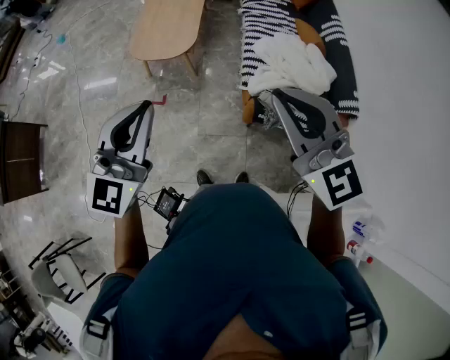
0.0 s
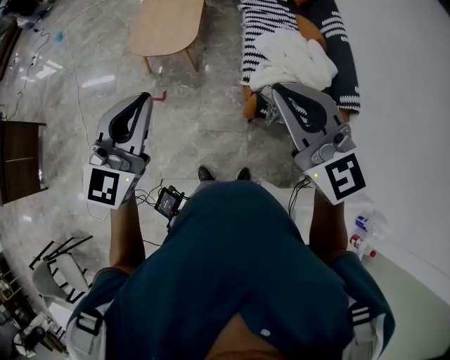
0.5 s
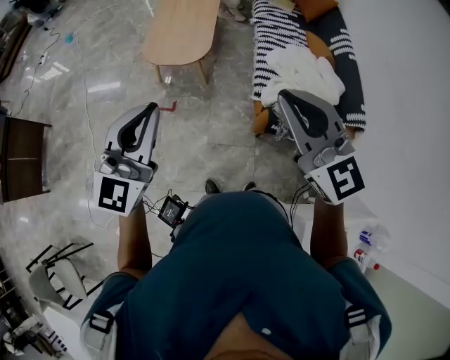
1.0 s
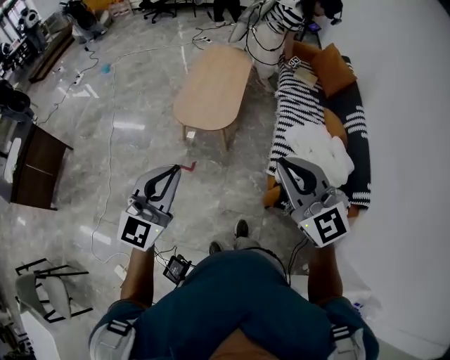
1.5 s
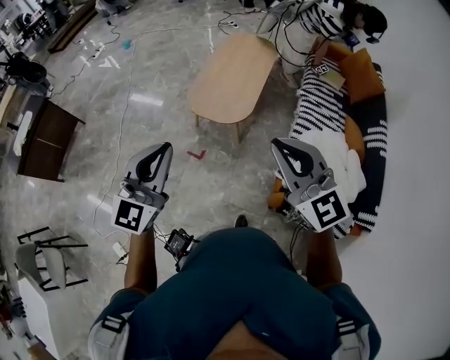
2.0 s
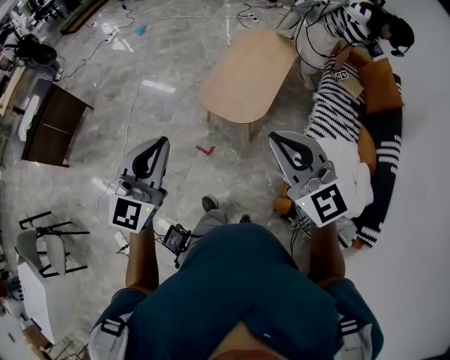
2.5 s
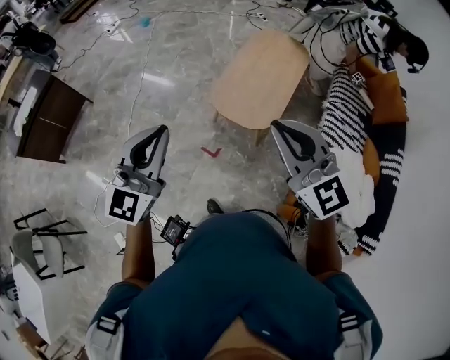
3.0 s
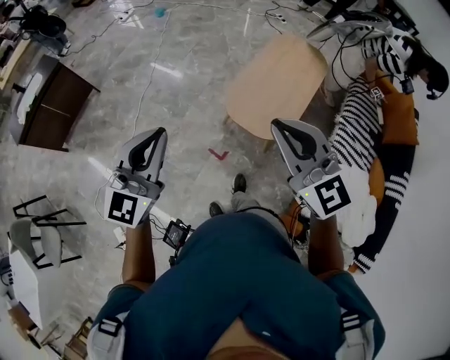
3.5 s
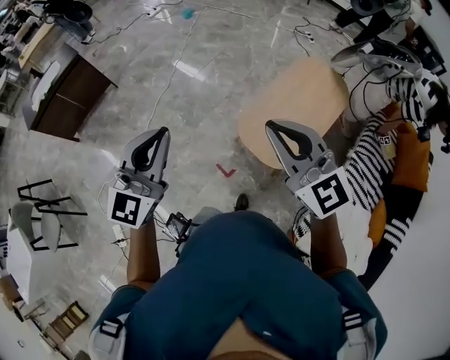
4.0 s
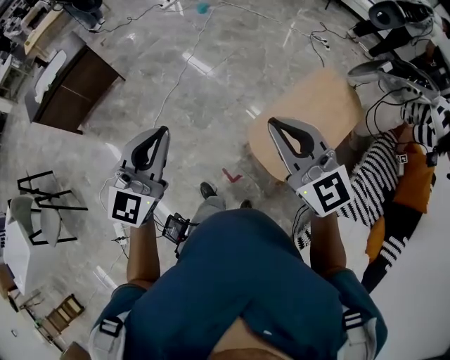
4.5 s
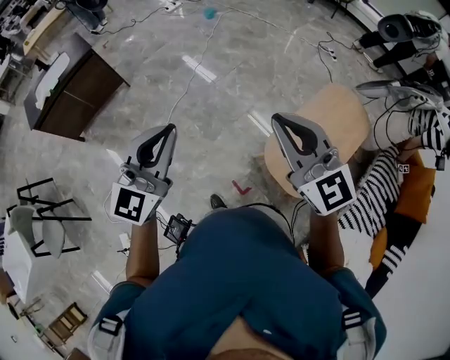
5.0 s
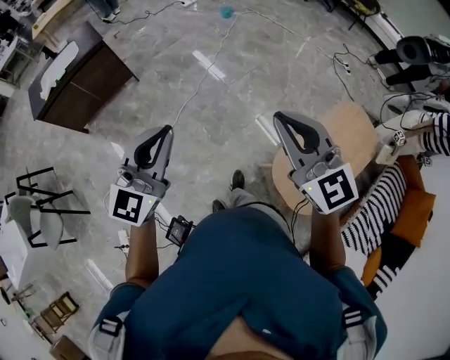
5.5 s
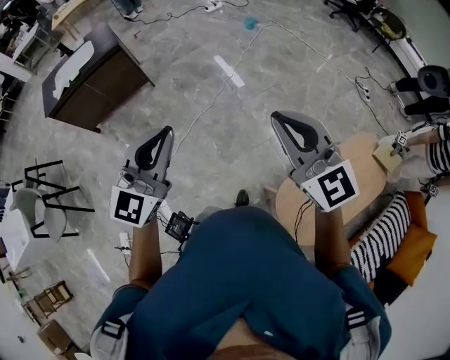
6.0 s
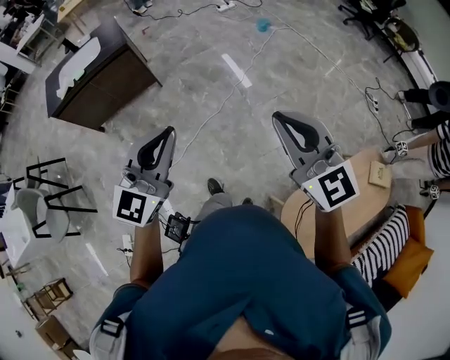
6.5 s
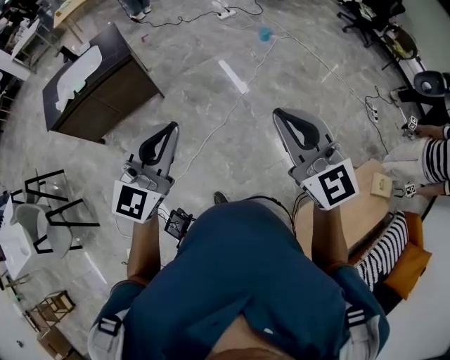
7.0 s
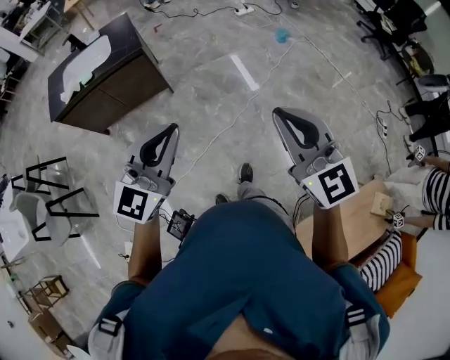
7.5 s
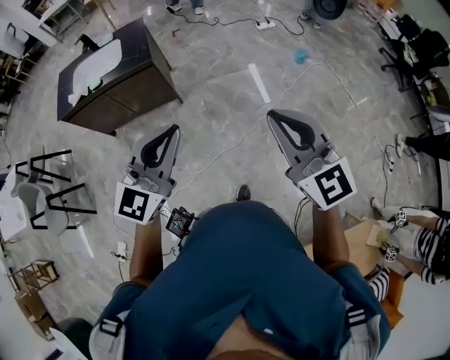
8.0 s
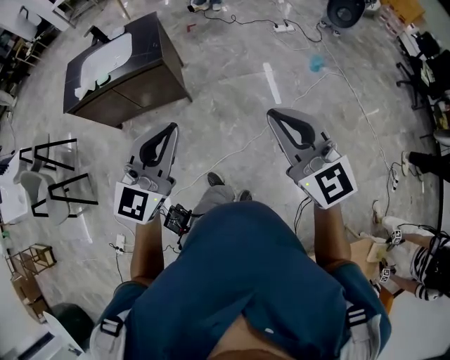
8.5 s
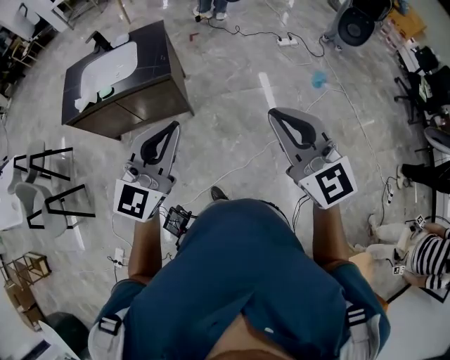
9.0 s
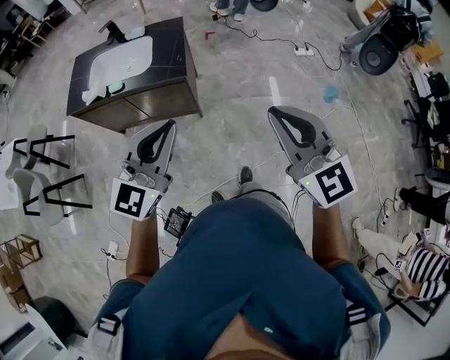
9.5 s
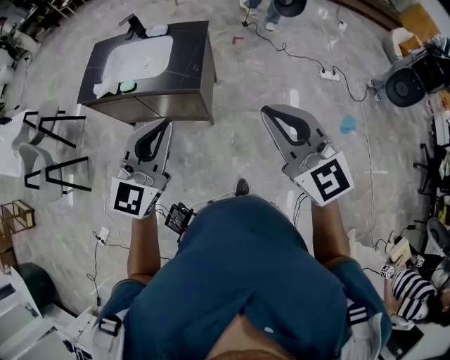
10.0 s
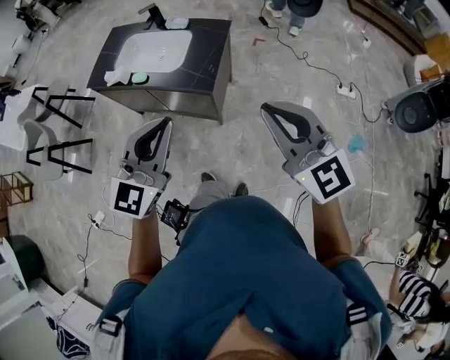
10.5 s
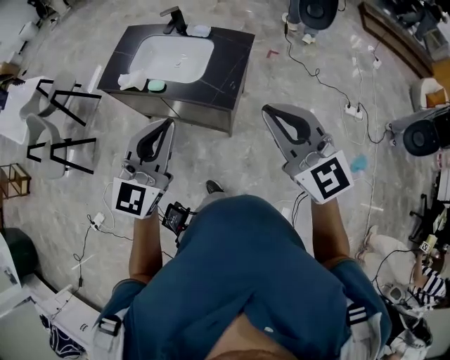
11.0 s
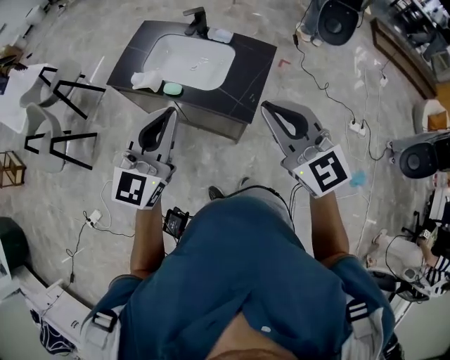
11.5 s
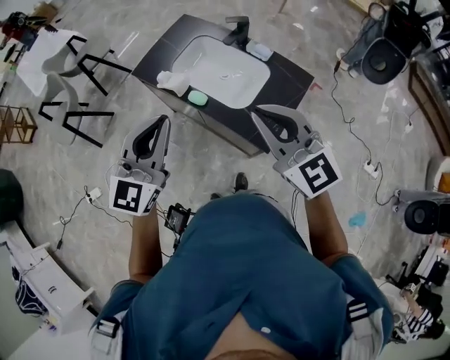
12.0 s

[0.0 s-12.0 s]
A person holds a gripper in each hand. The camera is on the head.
0.0 to 2.0 s: Both grippers travel together forward and to the left, about 20 cm.
2.0 to 4.0 s: The two grippers go approximately 40 cm forward and to the left. The left gripper rotates some 20 degrees. Meanwhile the right gripper rotates roughly 20 degrees.
4.0 to 6.0 s: The two grippers travel together, forward and to the left, some 50 cm.
6.0 to 8.0 s: The pair of grippers is taken forward, about 40 cm.
8.0 to 10.0 s: The two grippers go approximately 40 cm forward. The right gripper rotates roughly 20 degrees; the left gripper rotates roughly 20 degrees.
10.0 to 12.0 s: The left gripper changes place by some 35 cm, and turns by roughly 30 degrees; the right gripper ends up approximately 40 cm from where it was, and turns by roughly 30 degrees.

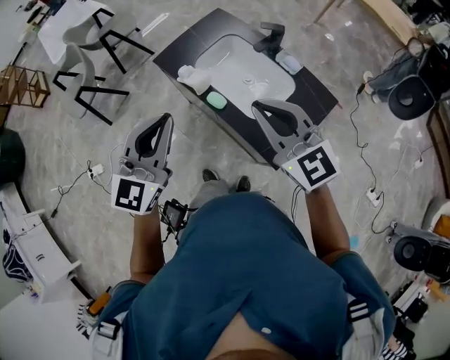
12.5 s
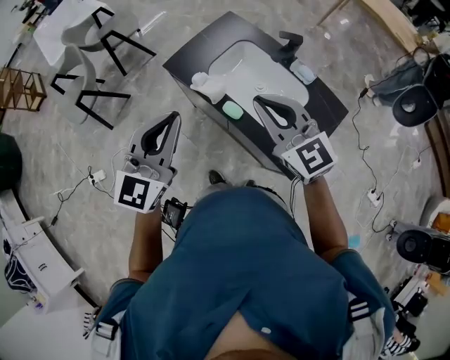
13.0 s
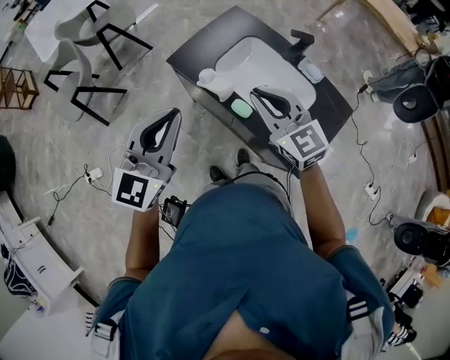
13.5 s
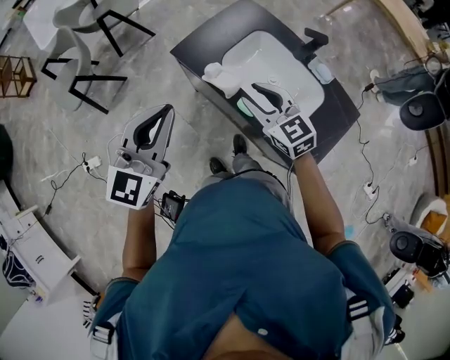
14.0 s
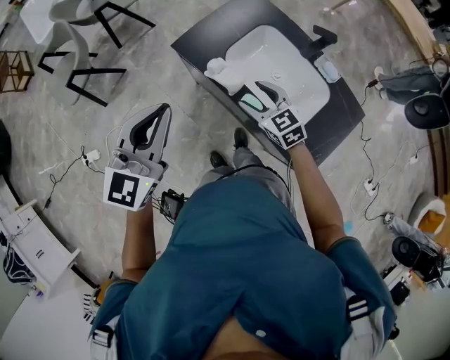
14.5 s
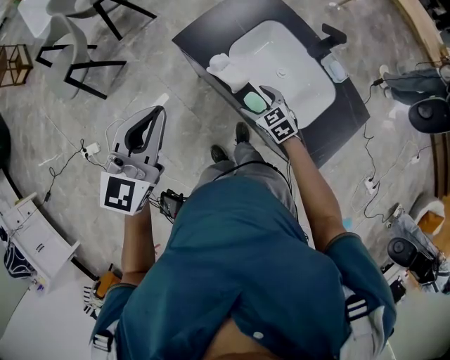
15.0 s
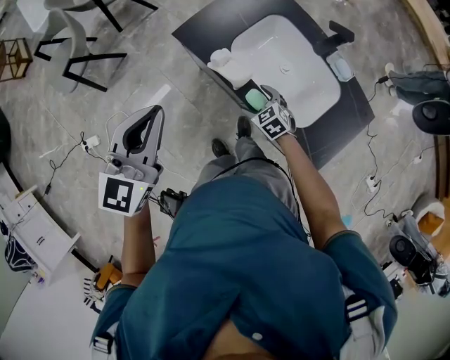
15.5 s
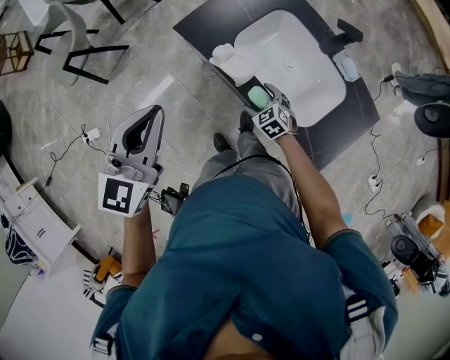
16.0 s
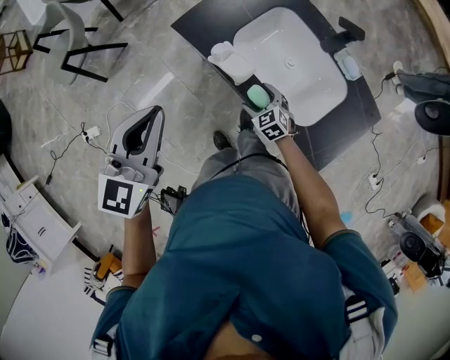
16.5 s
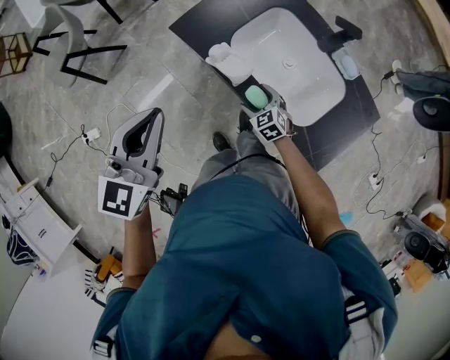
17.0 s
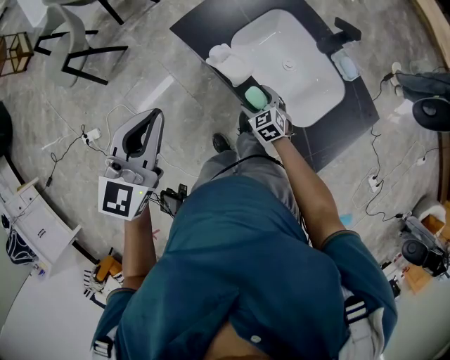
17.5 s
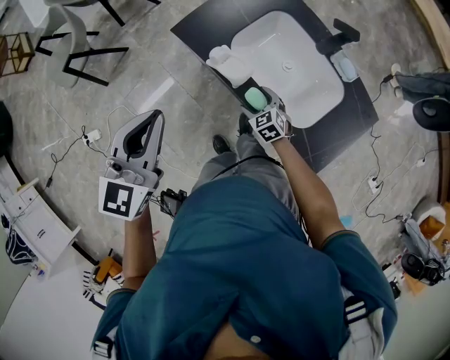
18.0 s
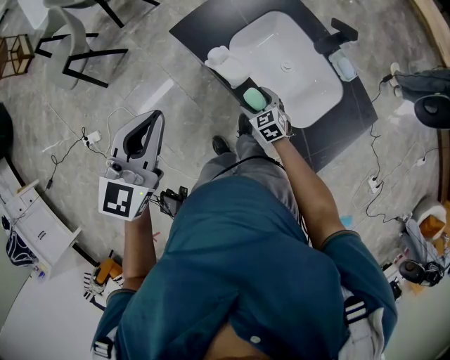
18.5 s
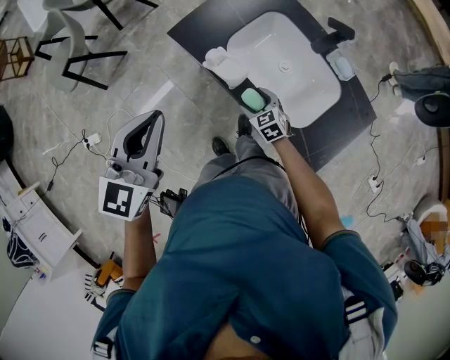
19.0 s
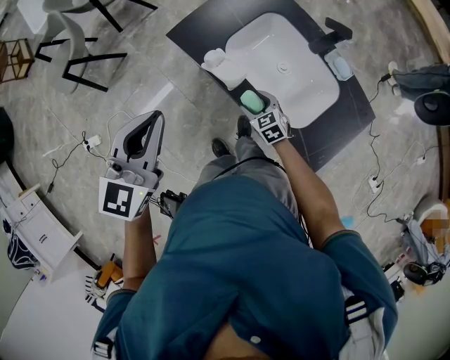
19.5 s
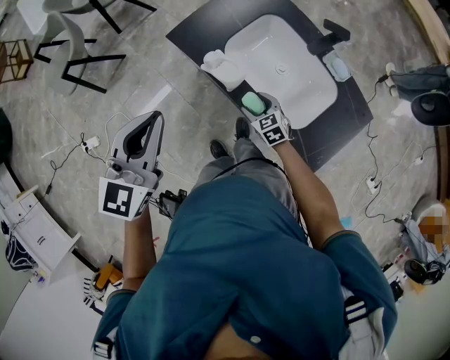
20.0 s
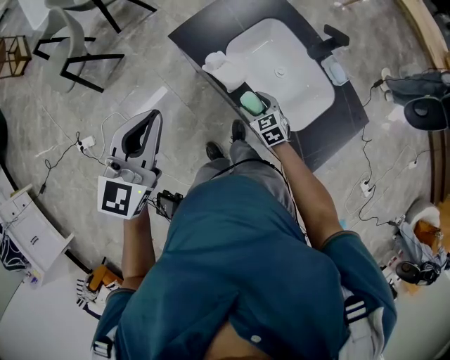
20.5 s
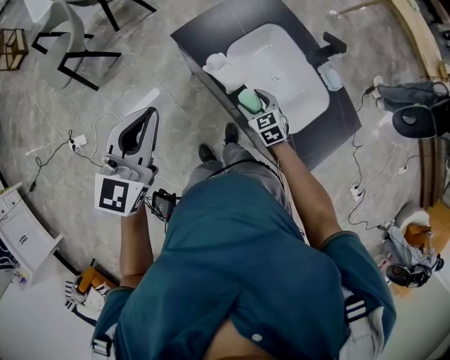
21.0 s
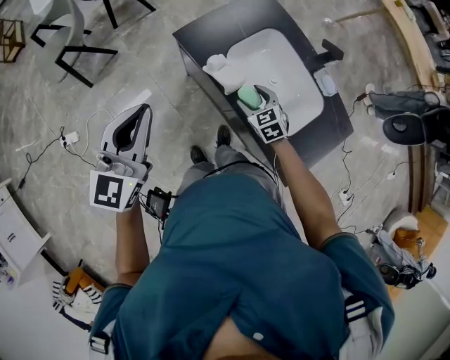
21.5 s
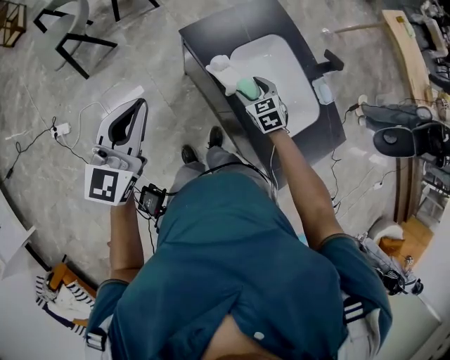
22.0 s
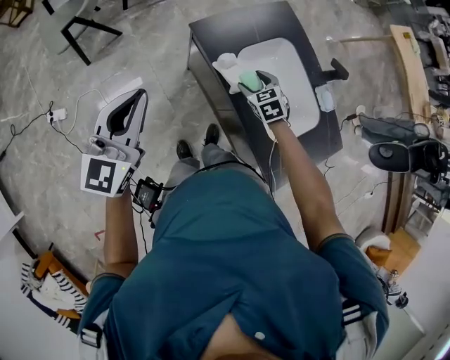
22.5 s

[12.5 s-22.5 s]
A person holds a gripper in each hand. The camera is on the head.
12.5 to 14.5 s: The left gripper heads to the left and forward, covering about 20 cm. Meanwhile the right gripper is displaced downward, forward and to the left by approximately 35 cm, rotates approximately 30 degrees, and opens up.
14.5 to 16.5 s: The right gripper moves downward, approximately 20 cm. The left gripper goes some 5 cm downward.
16.5 to 20.5 s: The grippers move only a little.
20.5 to 22.5 s: The left gripper goes about 10 cm to the left. The right gripper goes approximately 10 cm forward and upward.

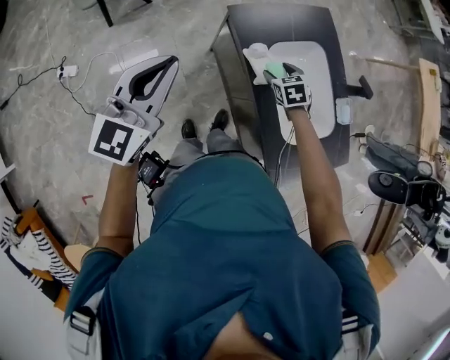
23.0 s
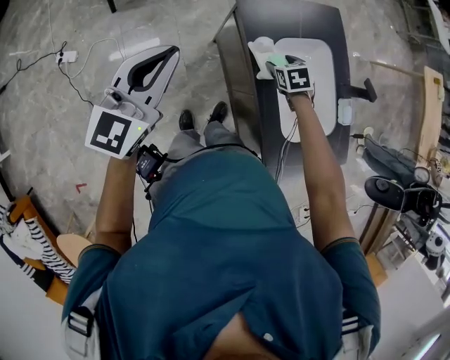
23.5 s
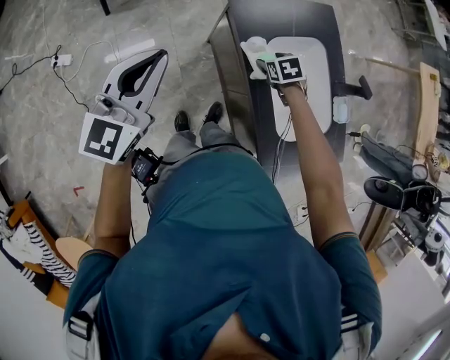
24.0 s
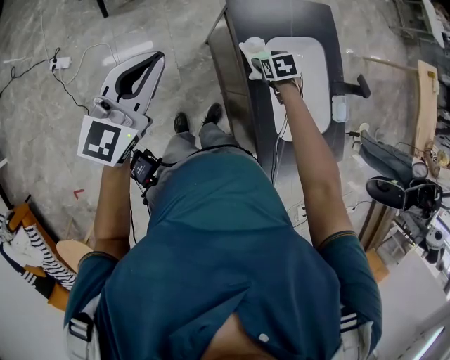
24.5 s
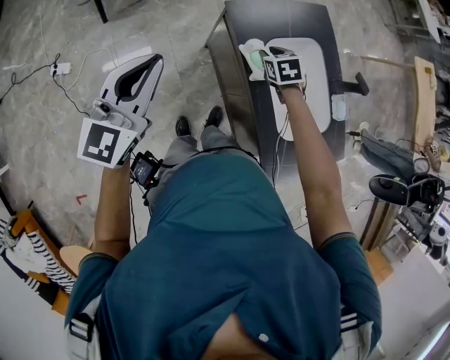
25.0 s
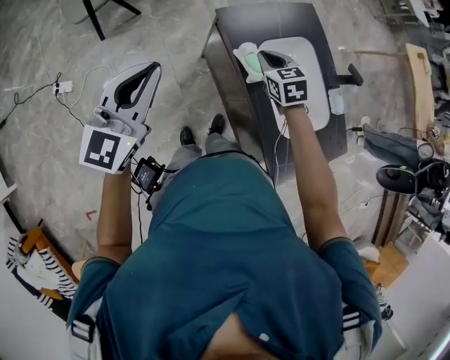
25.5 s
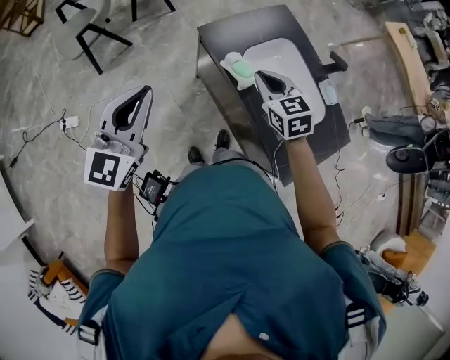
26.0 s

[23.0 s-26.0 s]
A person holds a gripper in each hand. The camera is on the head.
23.0 to 24.5 s: There are only small adjustments of the grippers.
24.5 to 26.0 s: The right gripper goes some 25 cm upward and backward, tilts its fingers approximately 40 degrees upward, and closes, while the left gripper goes about 5 cm upward.

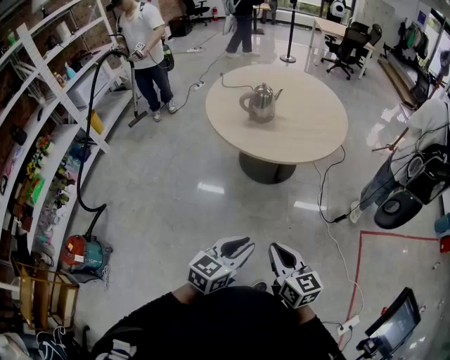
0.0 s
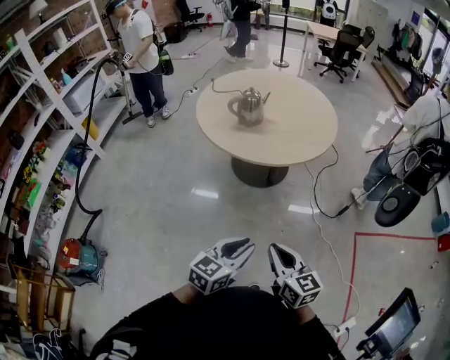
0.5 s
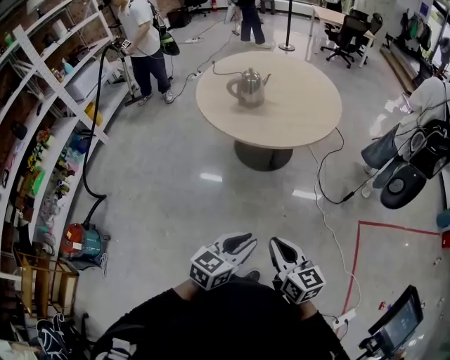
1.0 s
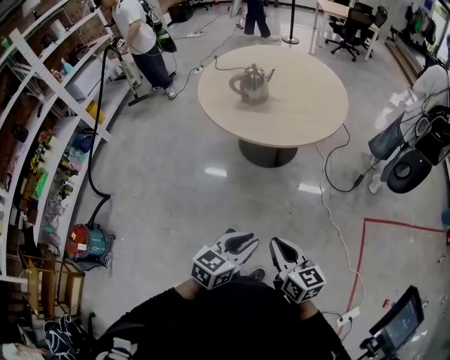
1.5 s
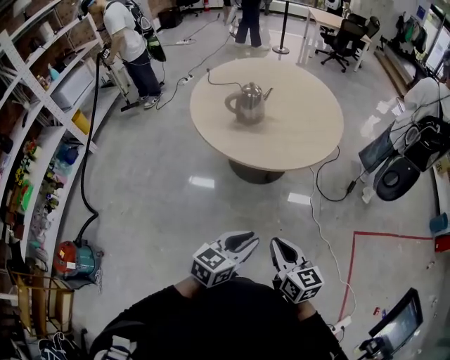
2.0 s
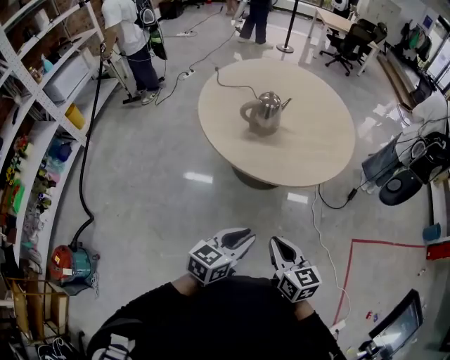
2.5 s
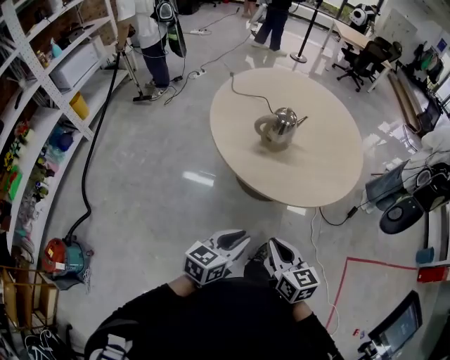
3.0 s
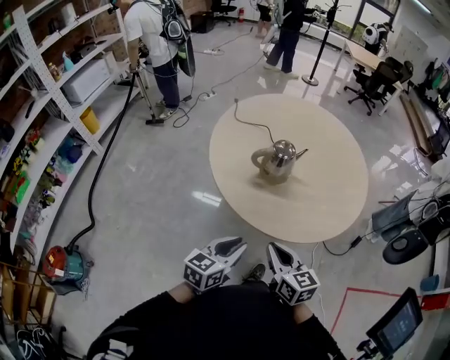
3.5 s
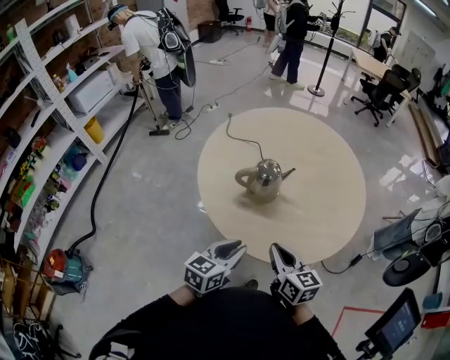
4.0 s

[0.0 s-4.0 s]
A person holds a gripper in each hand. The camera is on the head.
0.0 to 2.0 s: The two grippers go some 10 cm forward.
2.0 to 4.0 s: The grippers both shift forward by some 40 cm.
